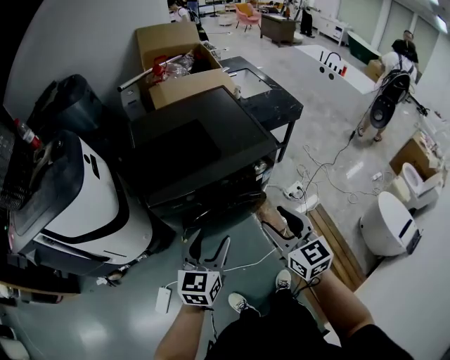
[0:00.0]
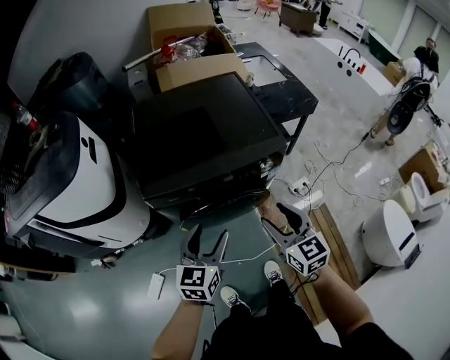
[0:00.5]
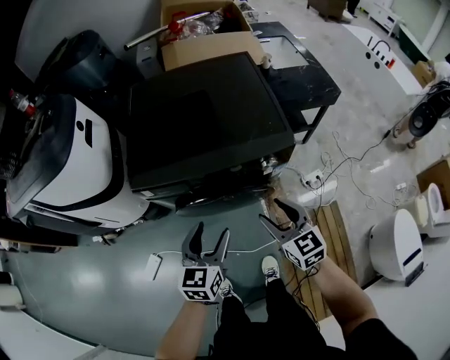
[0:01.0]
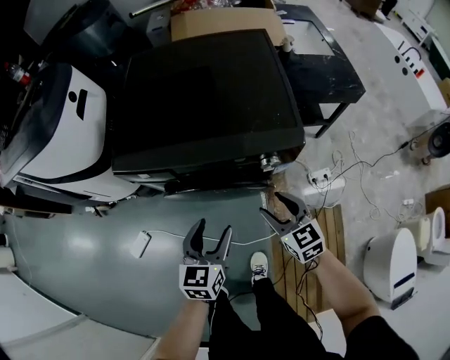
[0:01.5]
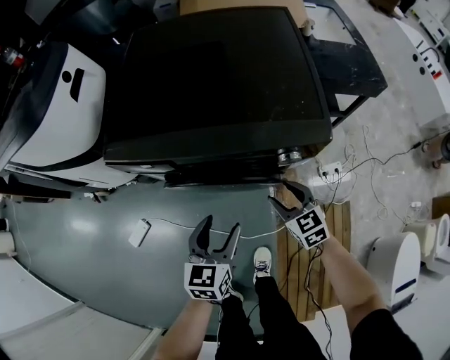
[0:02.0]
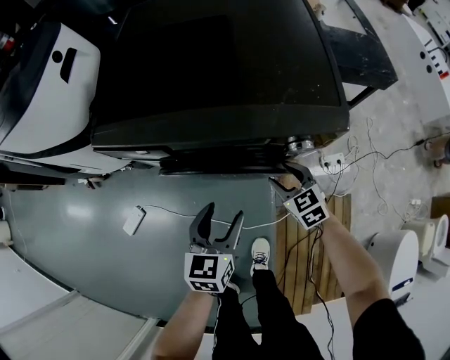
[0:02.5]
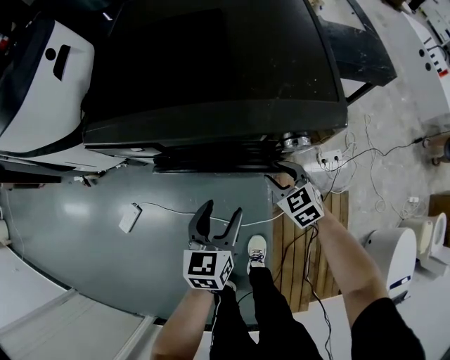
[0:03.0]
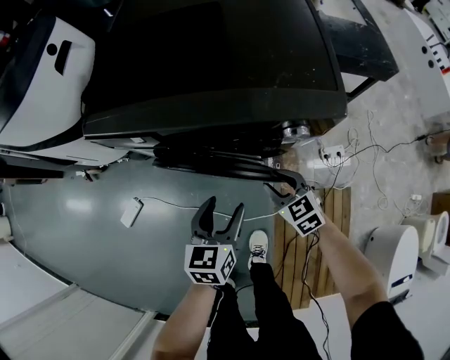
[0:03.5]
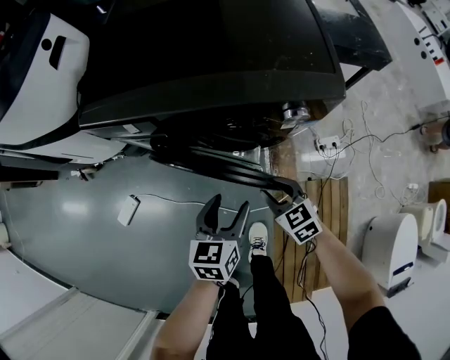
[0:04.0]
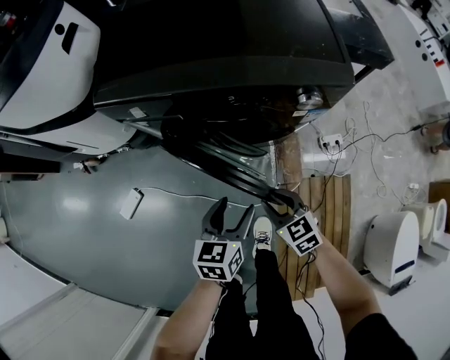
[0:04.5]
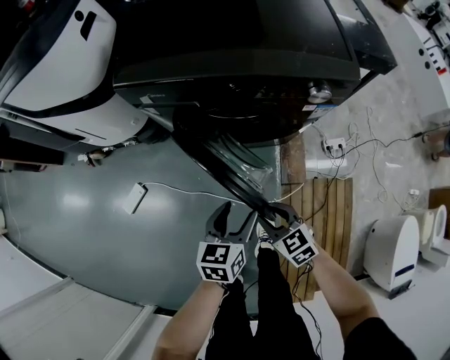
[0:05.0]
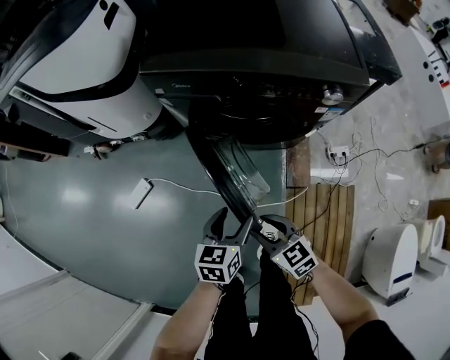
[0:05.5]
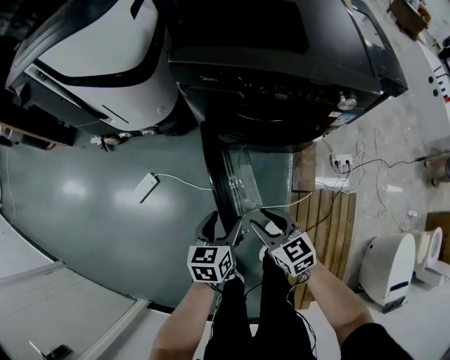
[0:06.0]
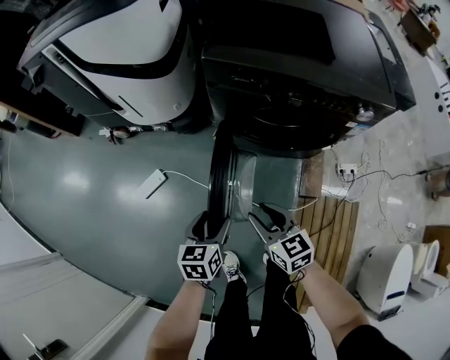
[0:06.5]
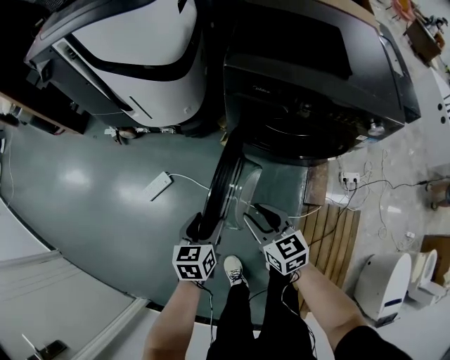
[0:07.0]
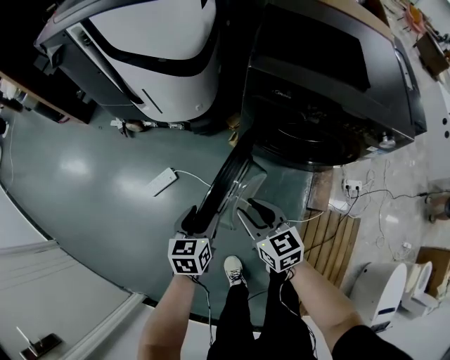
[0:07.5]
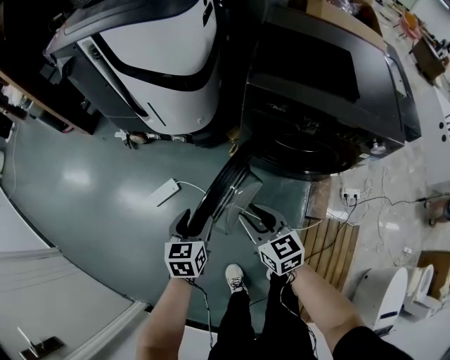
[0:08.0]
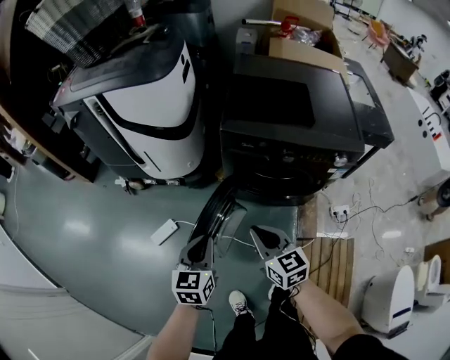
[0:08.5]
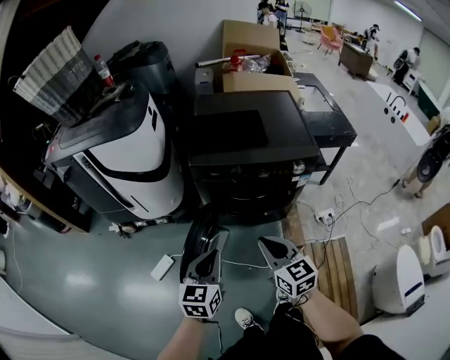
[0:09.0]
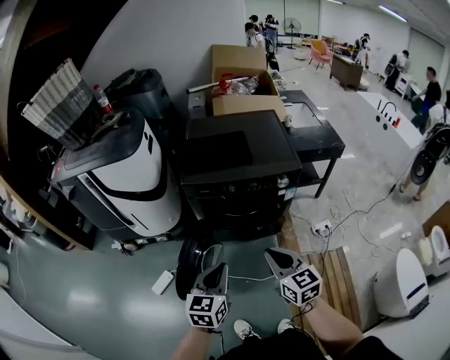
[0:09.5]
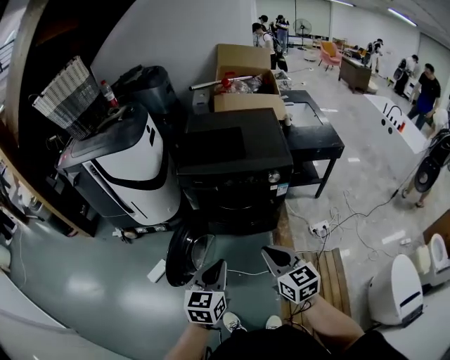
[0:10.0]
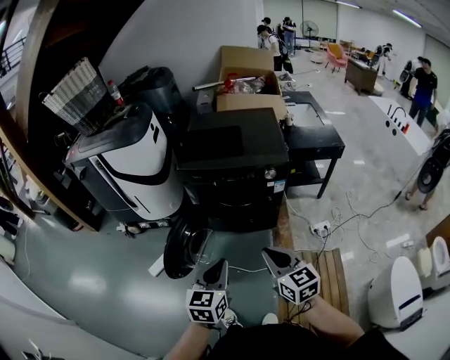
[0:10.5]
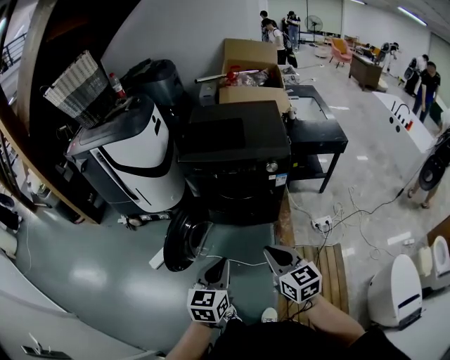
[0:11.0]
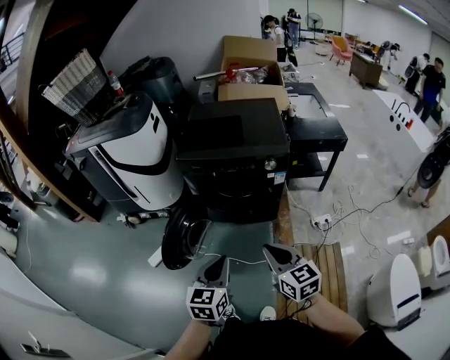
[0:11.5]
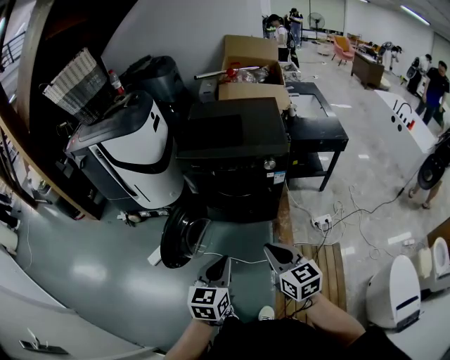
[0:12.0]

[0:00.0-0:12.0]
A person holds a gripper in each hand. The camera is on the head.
0:00.0 to 0:02.0: Both grippers move downward, about 25 cm. The left gripper changes its angle by about 30 degrees; the right gripper changes its angle by approximately 40 degrees.
0:02.0 to 0:04.0: The left gripper is displaced downward by approximately 10 cm. Meanwhile the right gripper shifts roughly 10 cm downward and backward, and closes.
0:04.0 to 0:06.0: The grippers both shift to the left and backward by approximately 25 cm.
0:06.0 to 0:08.0: The right gripper heads to the left, forward and upward, covering approximately 20 cm. Meanwhile the left gripper goes some 25 cm to the left and forward.
0:08.0 to 0:10.0: The left gripper shifts by approximately 40 cm, turns by about 30 degrees, and closes up, while the right gripper changes place by approximately 40 cm, rotates roughly 20 degrees, and closes up.
0:10.0 to 0:12.0: Both grippers move backward and to the right, about 10 cm.

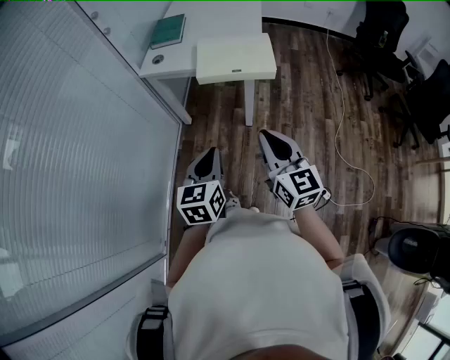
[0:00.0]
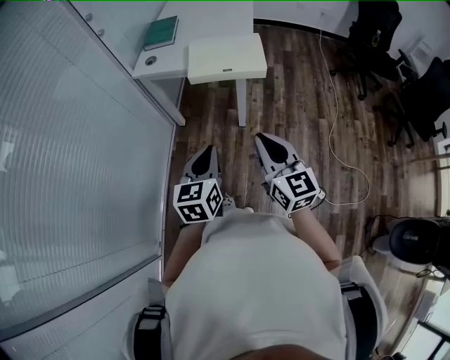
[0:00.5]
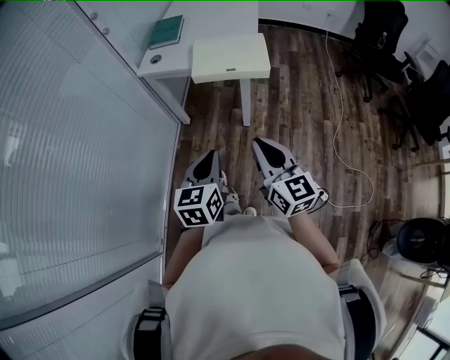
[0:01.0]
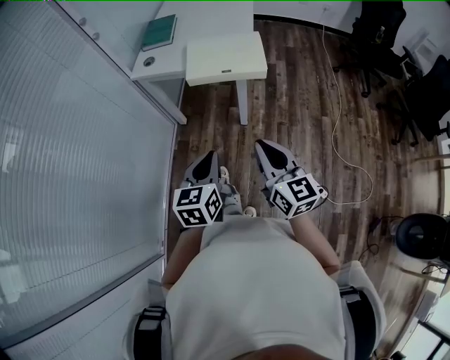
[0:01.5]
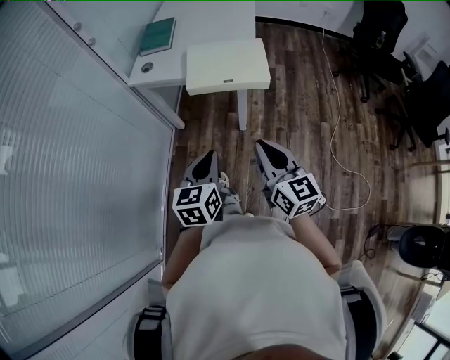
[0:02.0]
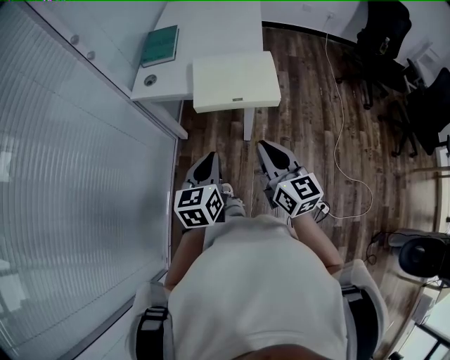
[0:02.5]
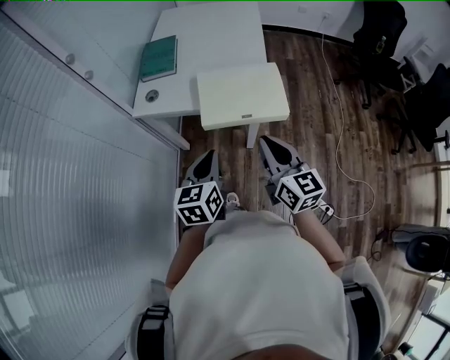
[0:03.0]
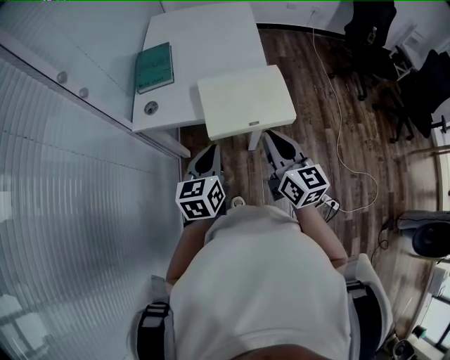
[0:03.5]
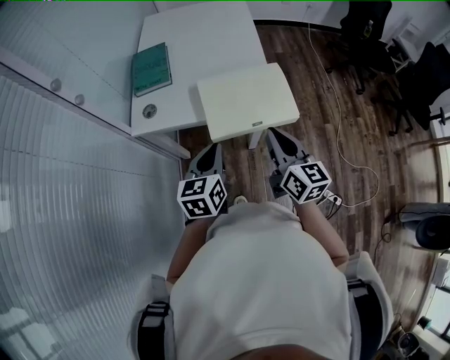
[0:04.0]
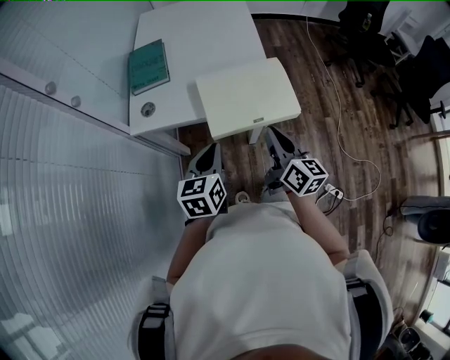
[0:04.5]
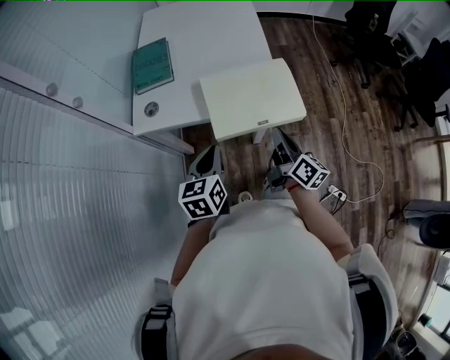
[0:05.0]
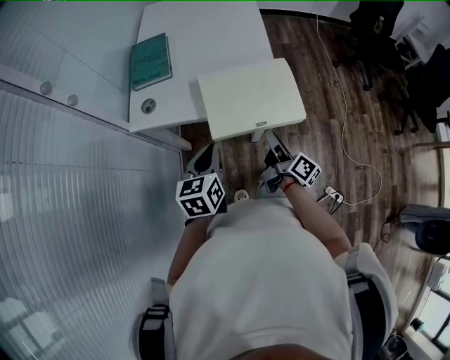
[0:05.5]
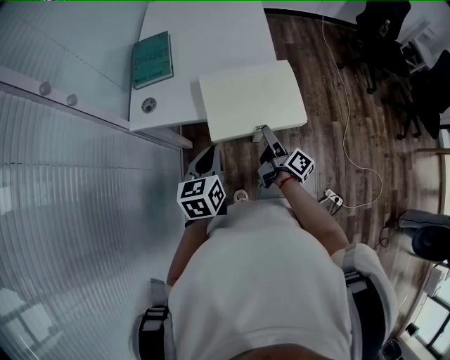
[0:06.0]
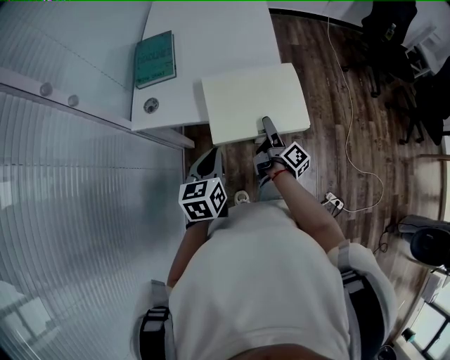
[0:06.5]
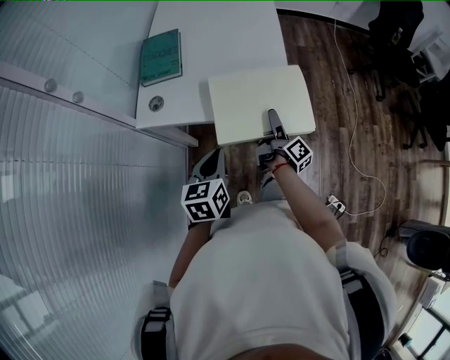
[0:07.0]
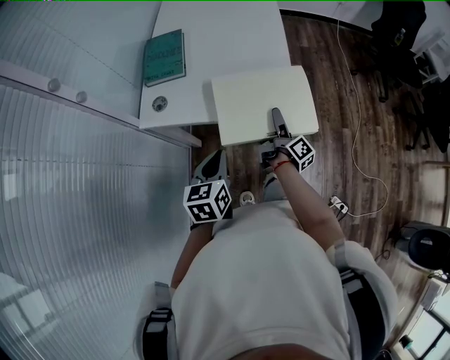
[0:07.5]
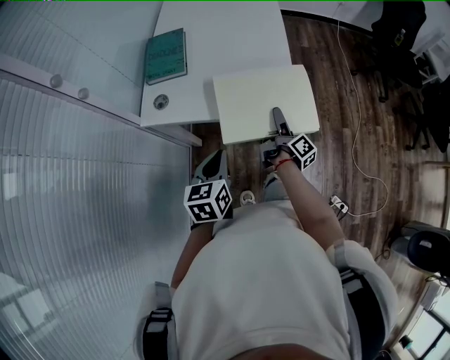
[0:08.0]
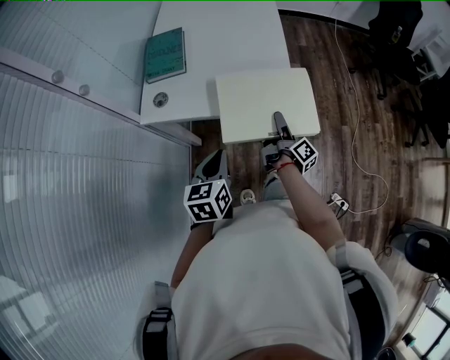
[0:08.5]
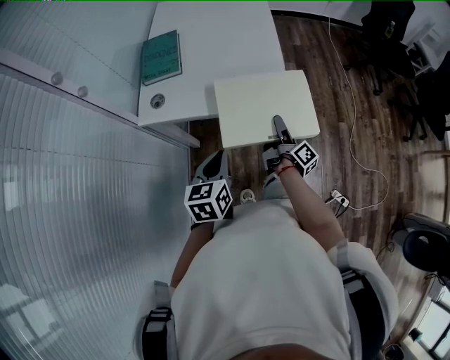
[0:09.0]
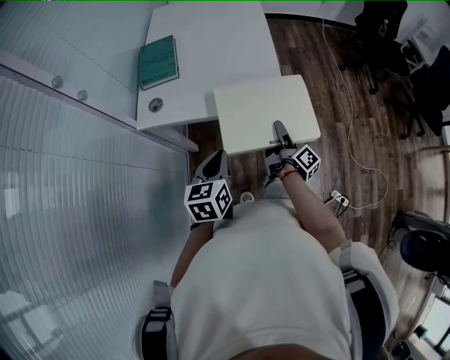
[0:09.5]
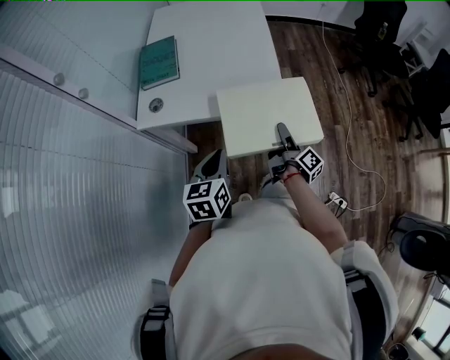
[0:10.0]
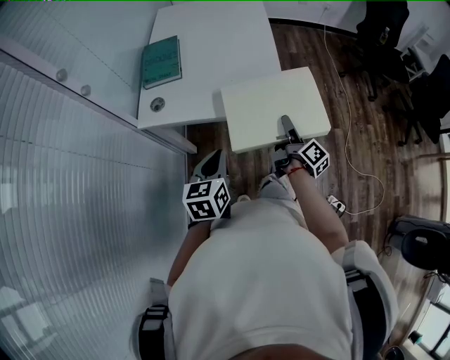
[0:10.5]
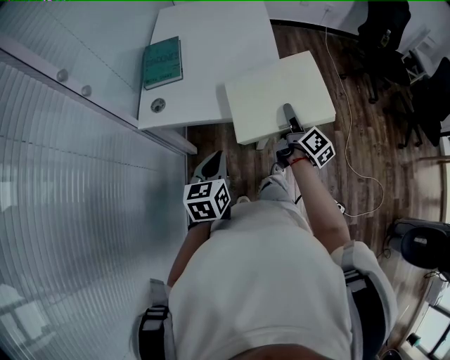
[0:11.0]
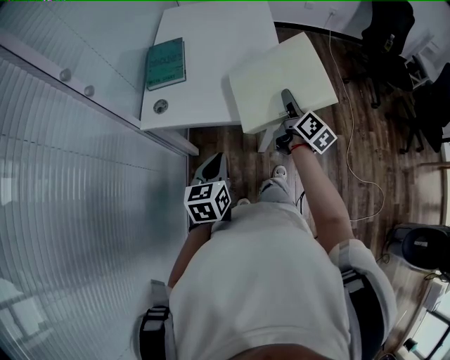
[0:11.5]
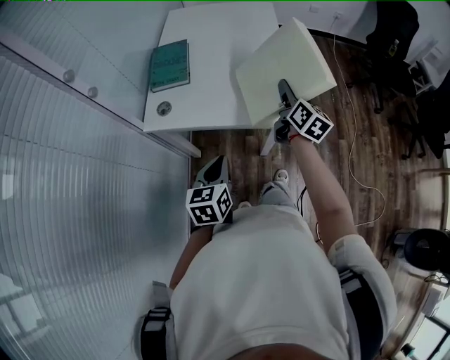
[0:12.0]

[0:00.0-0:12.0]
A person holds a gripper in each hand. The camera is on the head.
0:00.0 to 0:02.0: The left gripper goes some 5 cm forward.
0:02.0 to 0:04.0: The grippers both shift forward by approximately 20 cm.
0:04.0 to 0:06.0: The right gripper heads downward, covering approximately 15 cm, rotates around the line of its fingers by approximately 60 degrees, clockwise from behind, and opens its fingers.
0:06.0 to 0:08.0: The right gripper goes approximately 5 cm forward.
0:08.0 to 0:10.0: The right gripper travels backward by roughly 5 cm, and closes.
0:10.0 to 0:12.0: The right gripper travels forward and upward by approximately 20 cm, and rotates around the line of its fingers by about 50 degrees, counterclockwise from behind.

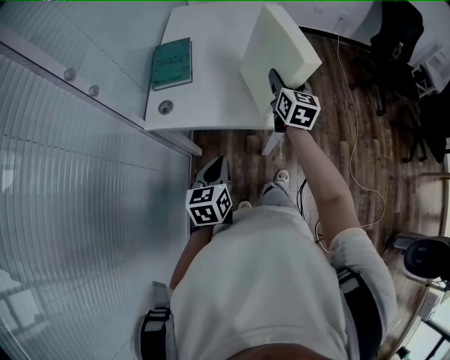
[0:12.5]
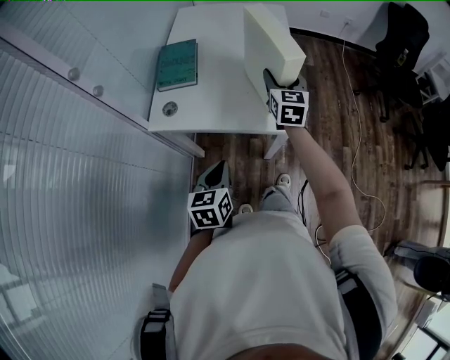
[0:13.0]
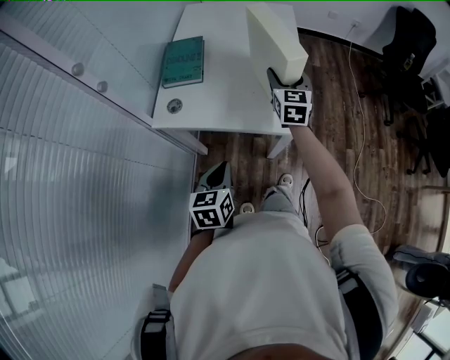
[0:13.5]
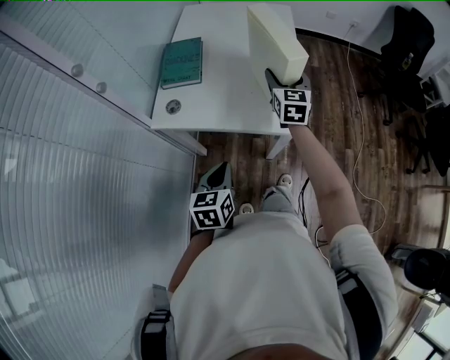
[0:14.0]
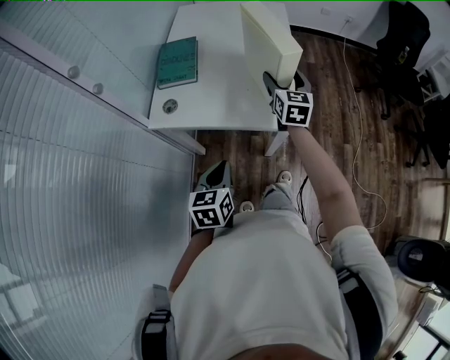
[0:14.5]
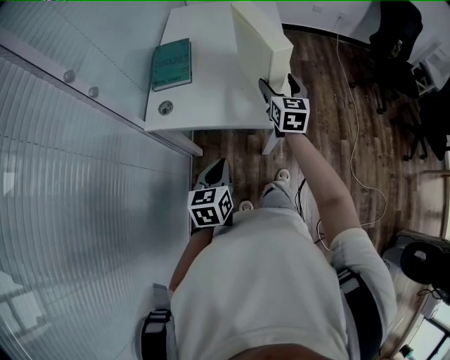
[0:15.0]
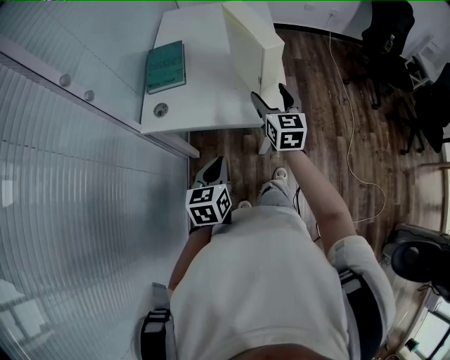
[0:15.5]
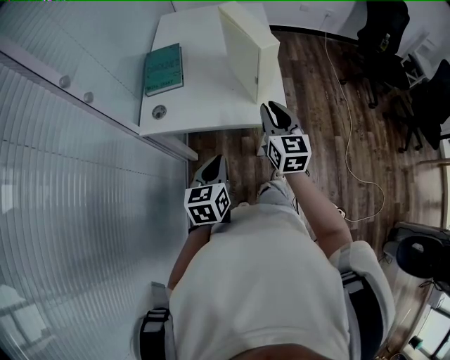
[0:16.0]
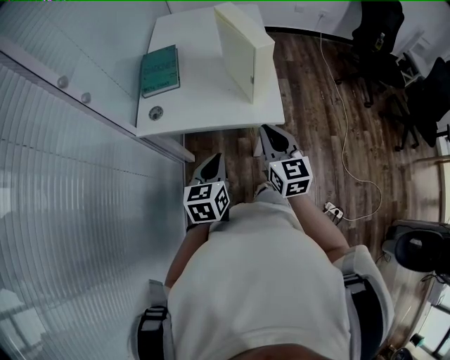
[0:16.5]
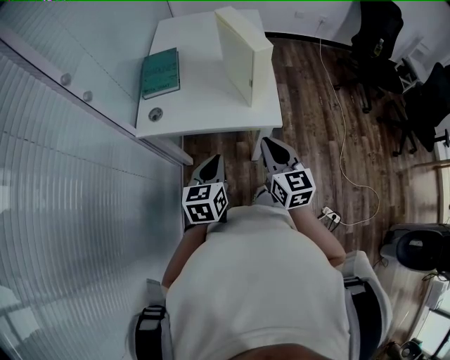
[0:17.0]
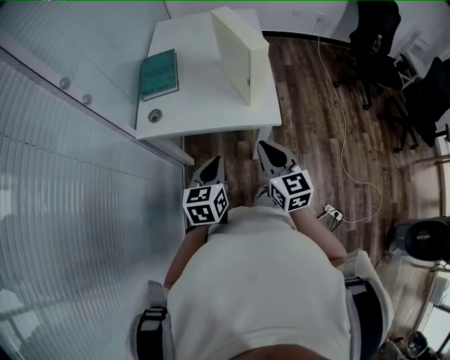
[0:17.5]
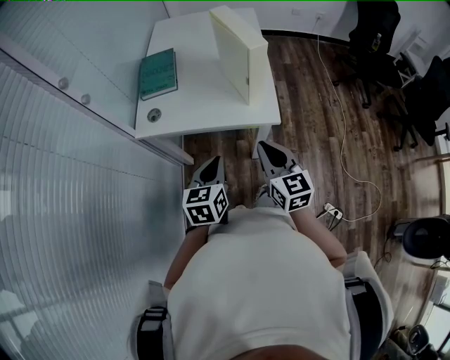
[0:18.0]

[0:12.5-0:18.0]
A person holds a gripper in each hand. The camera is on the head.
0:12.5 to 0:14.5: There are only small adjustments of the grippers.
0:14.5 to 0:16.0: The right gripper travels backward by about 15 cm, and closes up.
0:16.0 to 0:18.0: The right gripper moves backward, about 10 cm.
